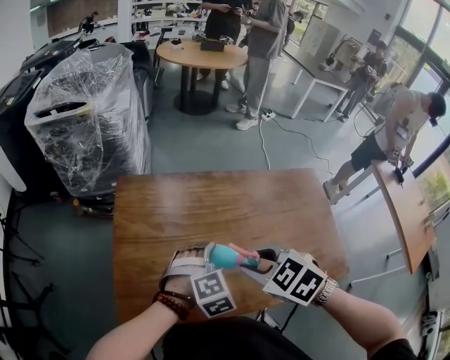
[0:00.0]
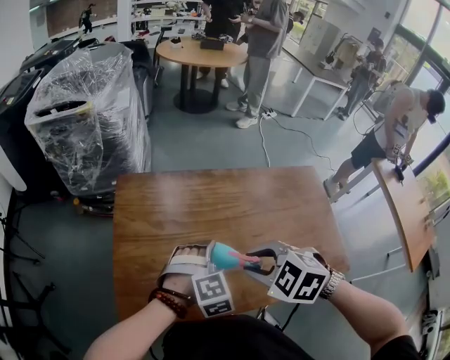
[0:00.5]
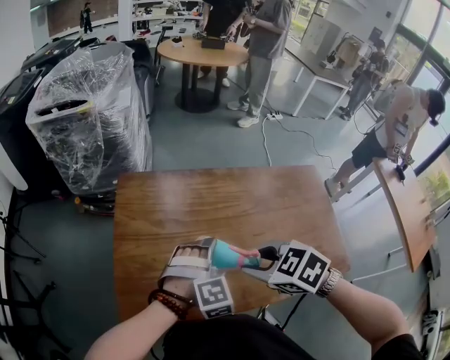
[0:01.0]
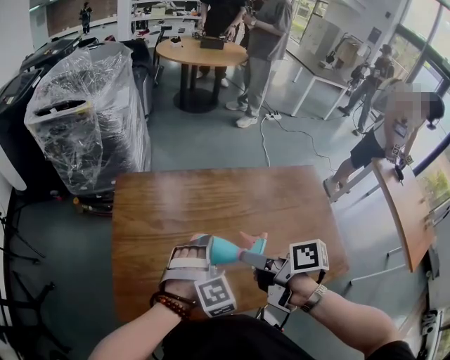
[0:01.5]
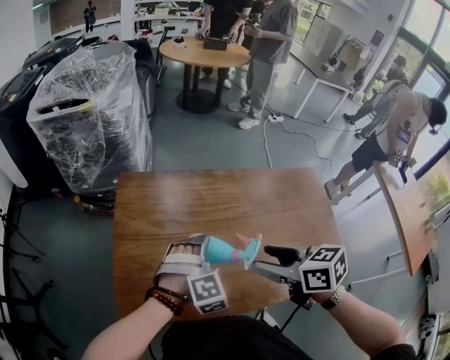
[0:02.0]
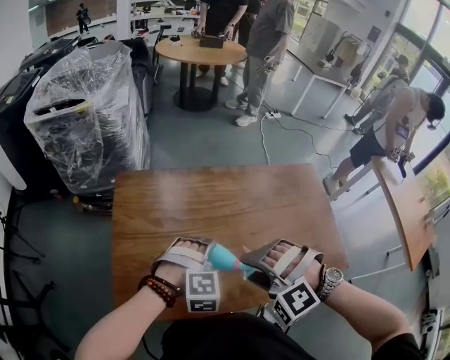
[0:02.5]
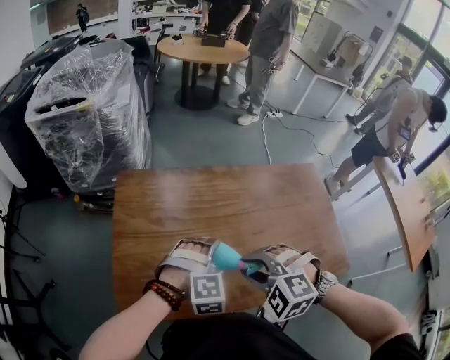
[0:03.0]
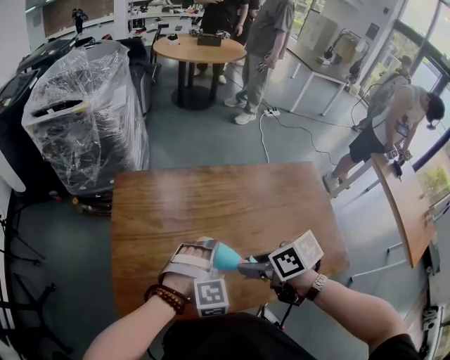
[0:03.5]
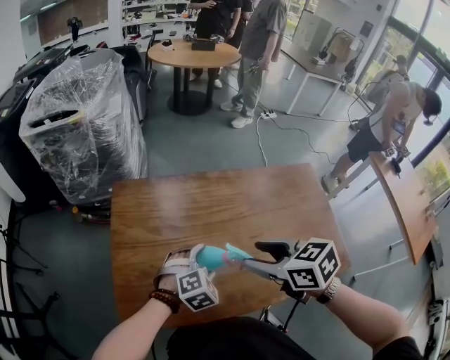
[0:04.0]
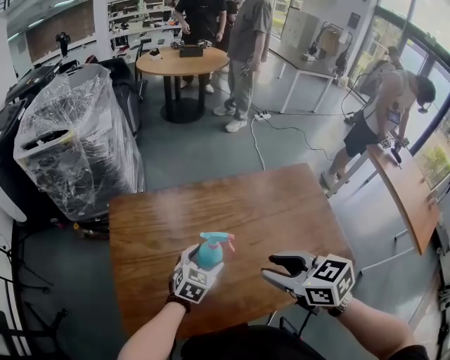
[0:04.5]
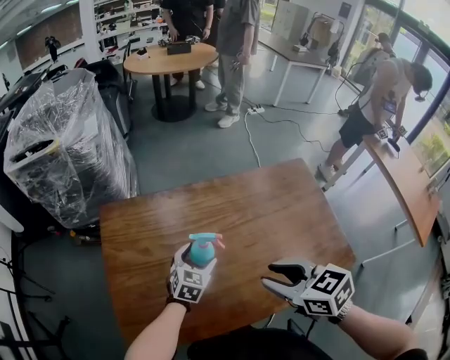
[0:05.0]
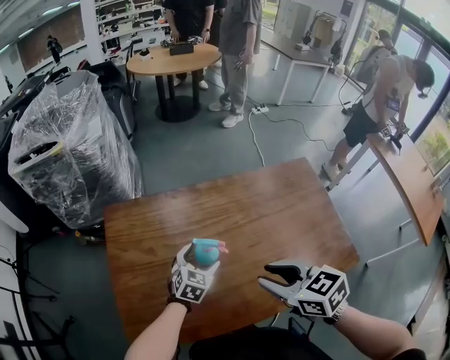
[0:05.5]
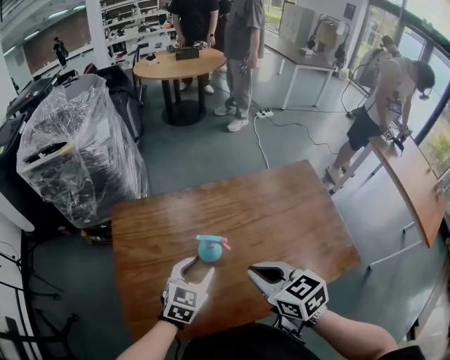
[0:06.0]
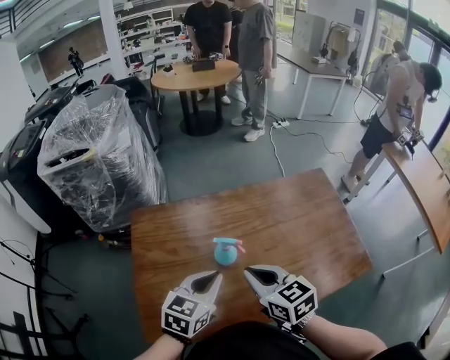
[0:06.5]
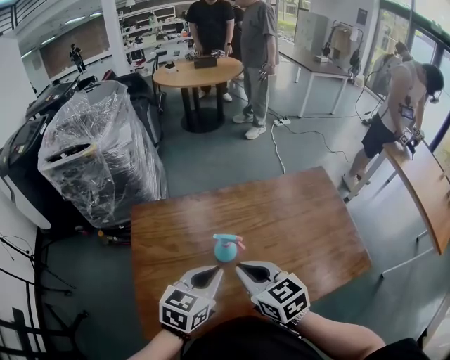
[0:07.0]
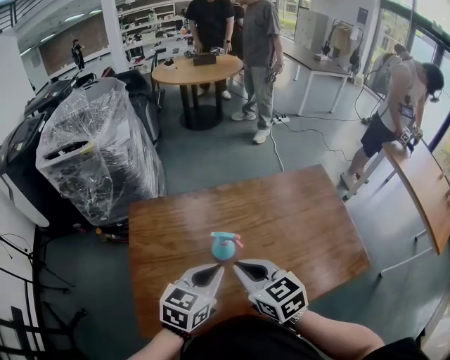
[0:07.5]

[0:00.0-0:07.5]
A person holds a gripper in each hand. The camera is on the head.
0:00.0 to 0:02.0: The right gripper rotates roughly 40 degrees, and opens.
0:02.0 to 0:04.0: The left gripper goes about 5 cm downward, and changes its angle by some 20 degrees. Meanwhile the right gripper closes, then opens again.
0:04.0 to 0:05.5: The right gripper changes place by some 5 cm, and closes its fingers; the left gripper moves forward, some 10 cm, and swivels some 30 degrees.
0:05.5 to 0:07.5: The left gripper travels upward and backward by about 20 cm, changes its angle by some 20 degrees, and closes; the right gripper heads to the left, covering some 10 cm, and closes its fingers.

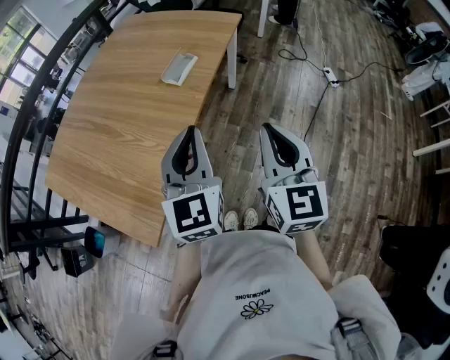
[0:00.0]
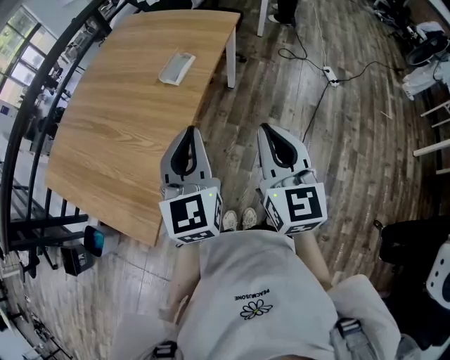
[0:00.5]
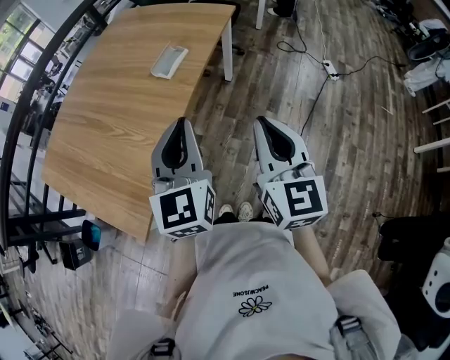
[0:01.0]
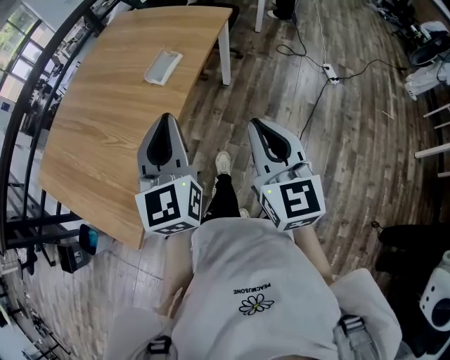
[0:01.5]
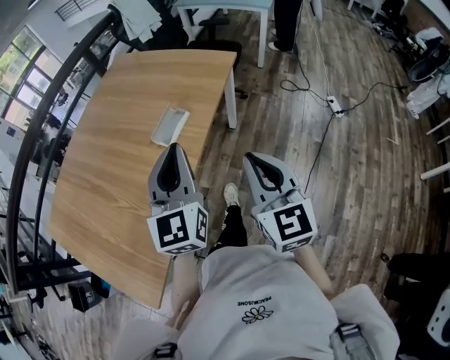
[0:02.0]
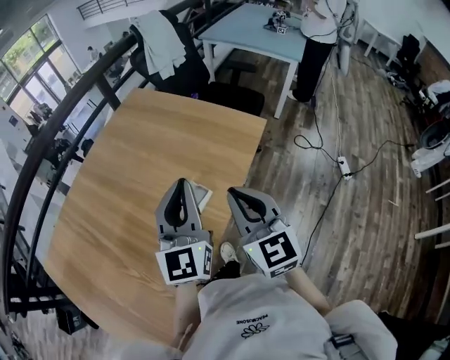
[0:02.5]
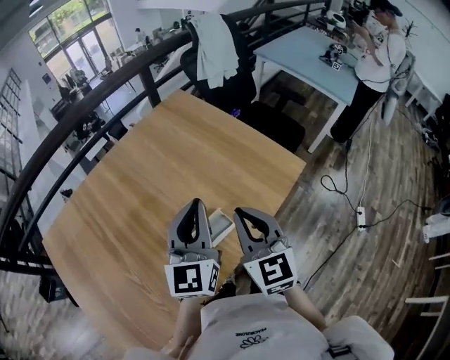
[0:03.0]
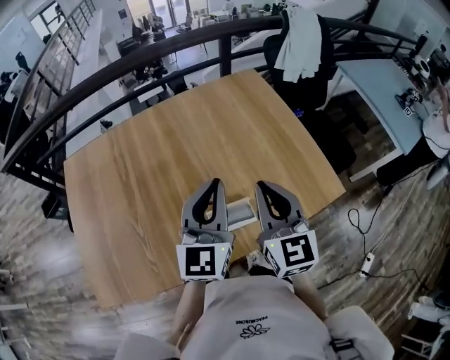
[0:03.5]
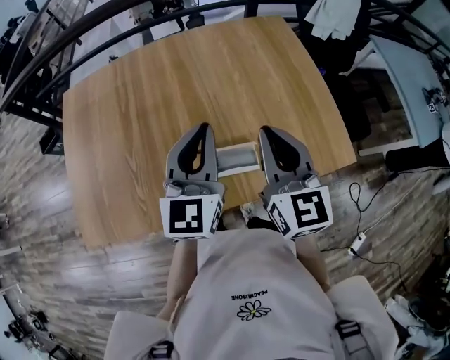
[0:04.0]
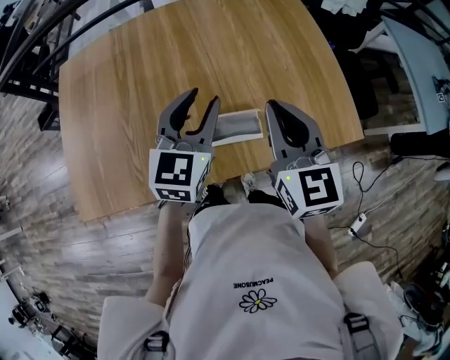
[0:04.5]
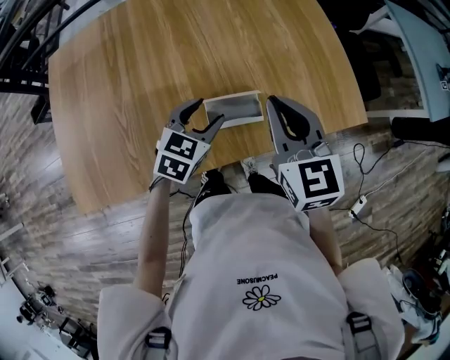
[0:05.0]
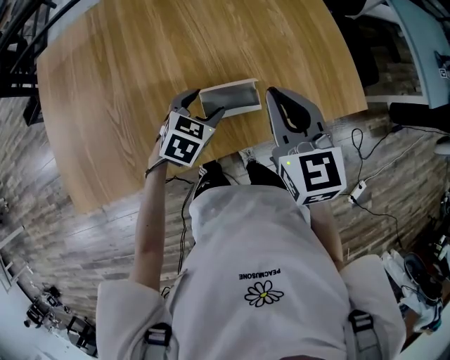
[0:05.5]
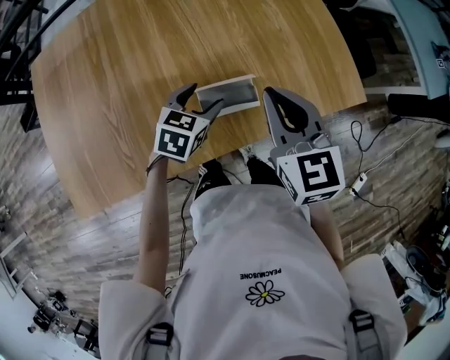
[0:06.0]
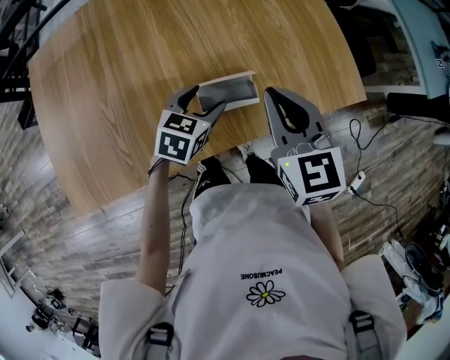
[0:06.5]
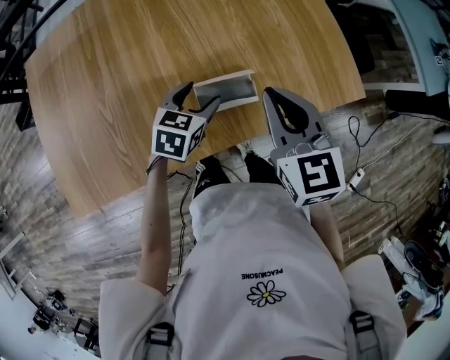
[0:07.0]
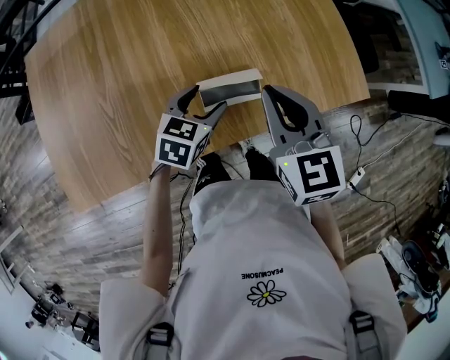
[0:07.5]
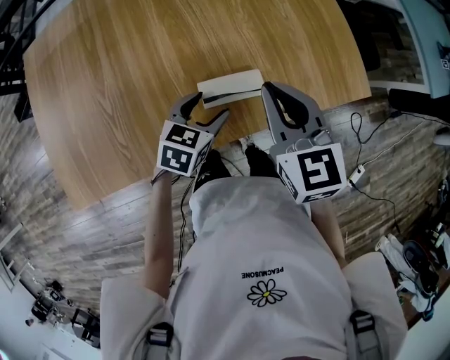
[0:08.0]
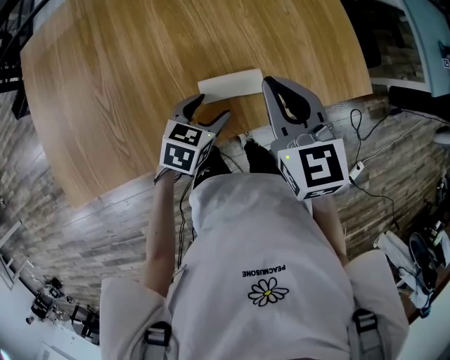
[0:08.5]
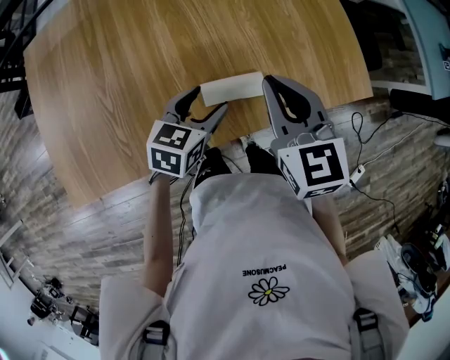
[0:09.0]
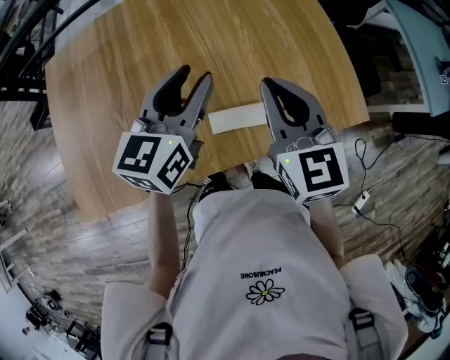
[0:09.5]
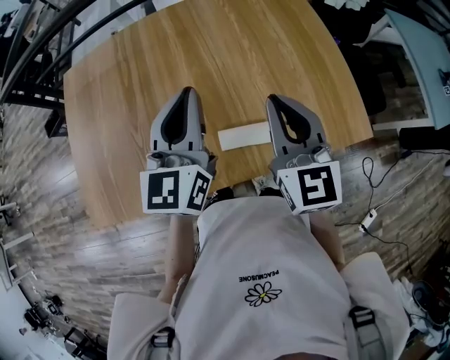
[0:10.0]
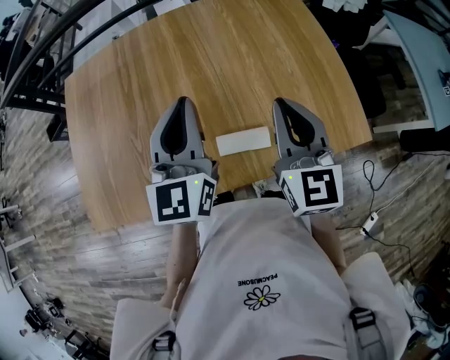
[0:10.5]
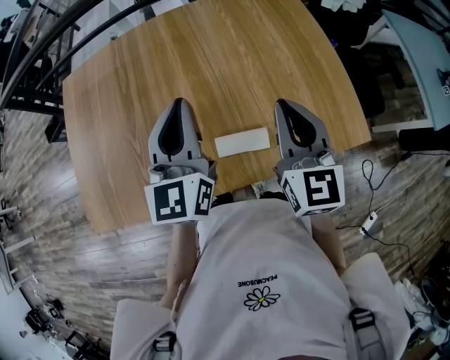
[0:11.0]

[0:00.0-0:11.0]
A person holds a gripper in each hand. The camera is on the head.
0:00.0 to 0:02.0: Both grippers travel together forward, approximately 15 cm.
0:02.0 to 0:03.5: The left gripper shifts by some 30 cm, and turns by approximately 30 degrees, while the right gripper ends up some 40 cm from where it was, and turns by some 40 degrees.
0:03.5 to 0:05.5: The left gripper heads downward, covering roughly 30 cm, angles its fingers downward, by roughly 50 degrees, and opens; the right gripper goes some 10 cm downward.
0:05.5 to 0:07.5: The grippers stay close to where they were, moving slightly.
0:07.5 to 0:09.0: The grippers stay close to where they were, moving slightly.
0:09.0 to 0:11.0: The left gripper heads upward, covering some 25 cm, tilts its fingers some 40 degrees upward, and closes; the right gripper travels upward by approximately 5 cm.

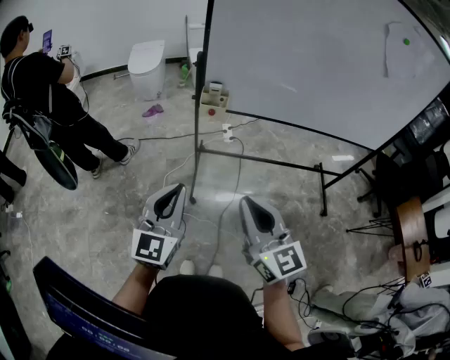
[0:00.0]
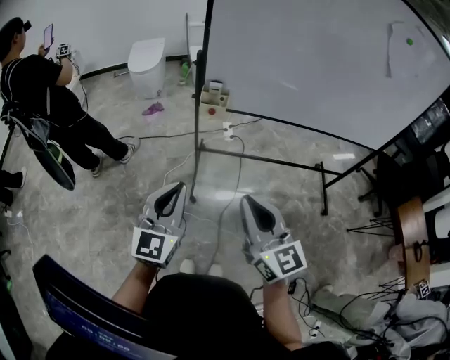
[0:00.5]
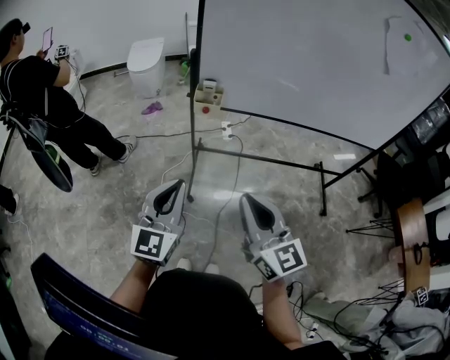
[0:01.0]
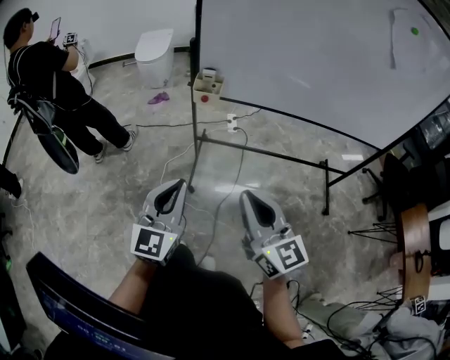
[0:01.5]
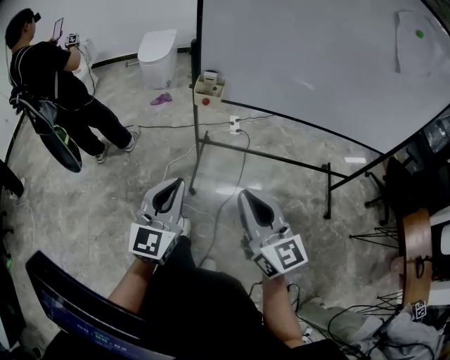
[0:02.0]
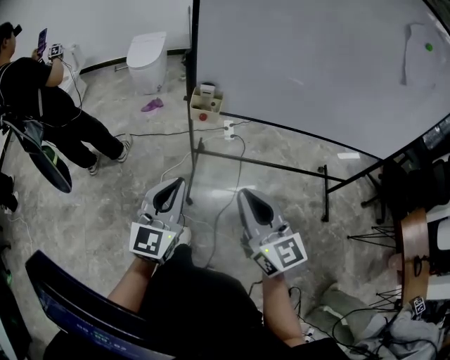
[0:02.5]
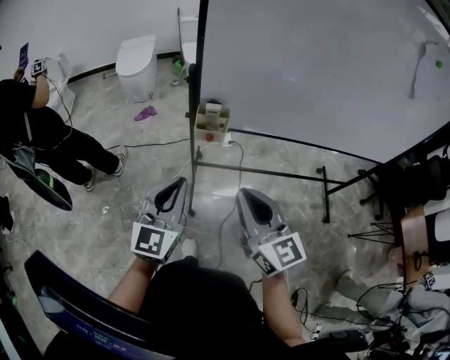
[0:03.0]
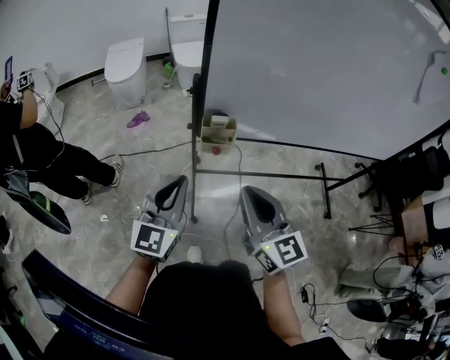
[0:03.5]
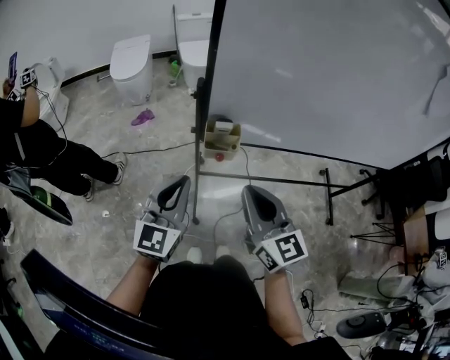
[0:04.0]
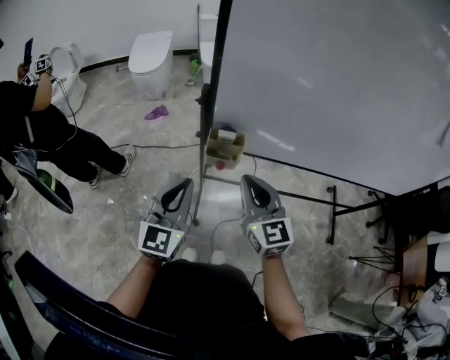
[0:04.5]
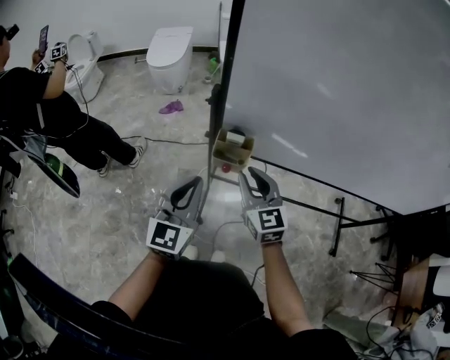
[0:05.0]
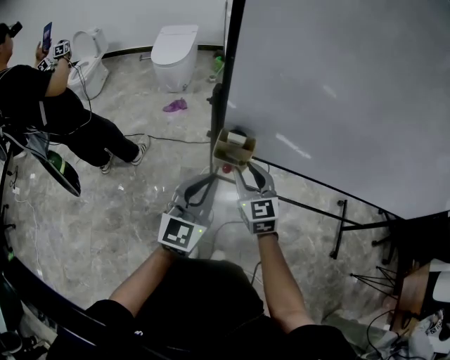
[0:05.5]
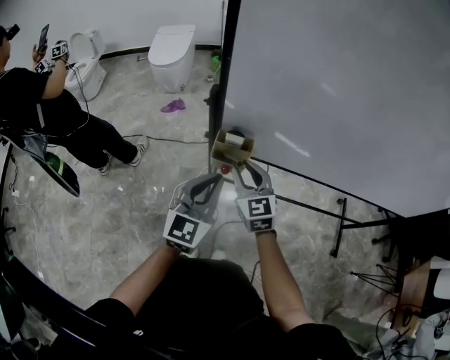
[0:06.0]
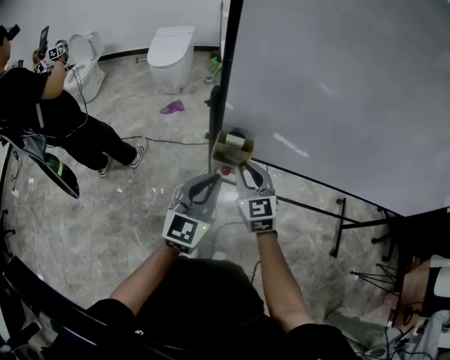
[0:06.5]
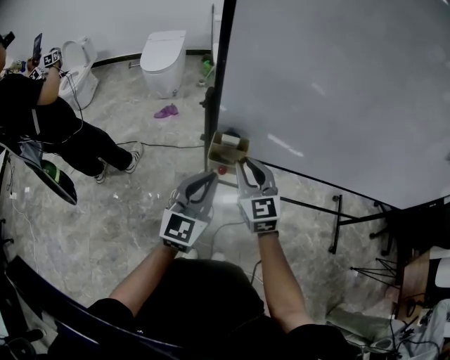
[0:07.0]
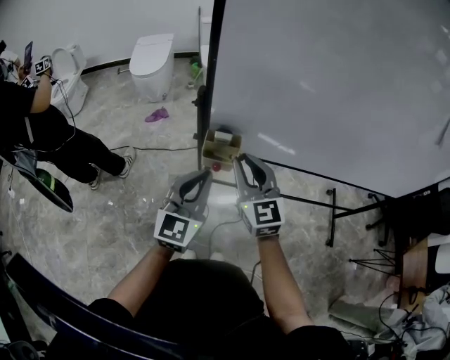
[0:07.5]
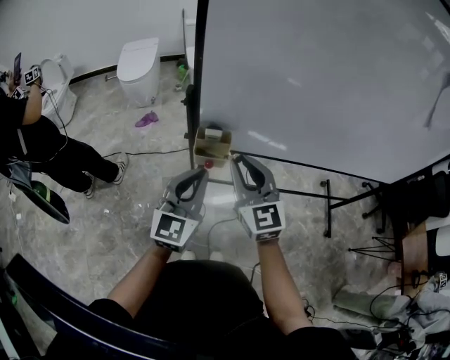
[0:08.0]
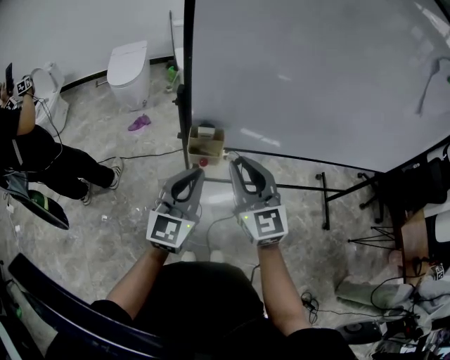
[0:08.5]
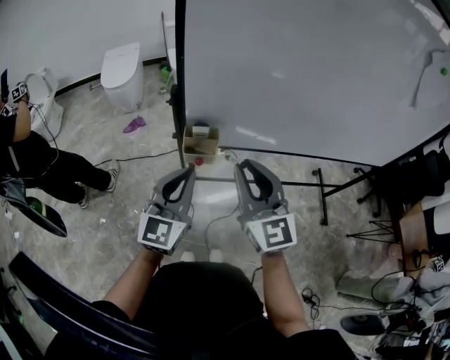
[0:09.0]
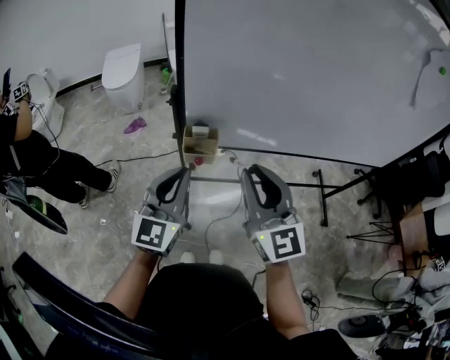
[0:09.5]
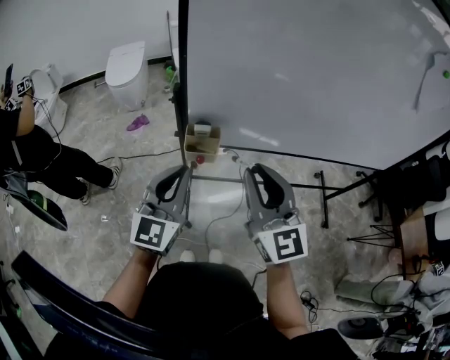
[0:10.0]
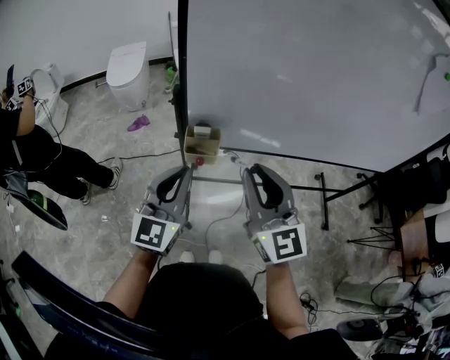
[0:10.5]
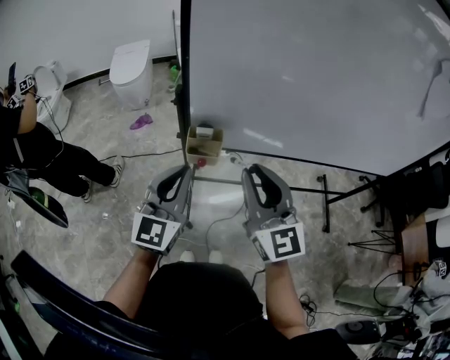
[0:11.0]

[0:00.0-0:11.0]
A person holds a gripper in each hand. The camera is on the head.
0:00.0 to 0:02.0: Both grippers travel together to the right, about 5 cm.
0:02.0 to 0:03.5: The left gripper moves forward, about 25 cm. The right gripper heads forward and to the left, covering about 25 cm.
0:03.5 to 0:05.5: The left gripper shifts some 10 cm to the right and forward; the right gripper is displaced forward and downward by approximately 25 cm, changes its angle by about 20 degrees, and opens up.
0:05.5 to 0:07.5: The right gripper travels upward by roughly 10 cm.
0:07.5 to 0:09.0: The right gripper travels backward and upward by about 10 cm.
0:09.0 to 0:11.0: The grippers make only small movements.
